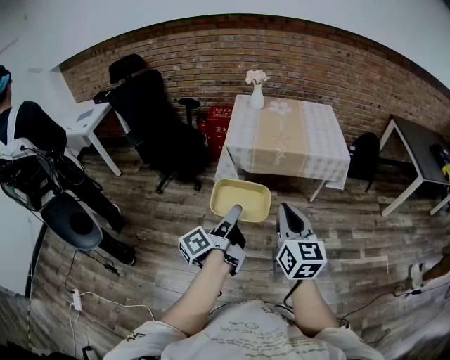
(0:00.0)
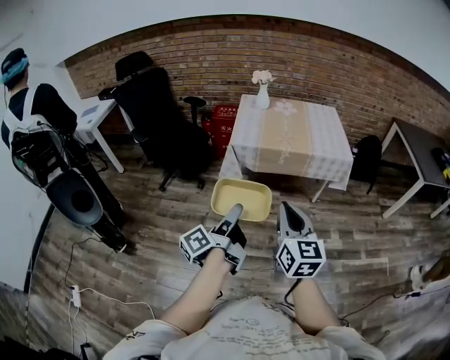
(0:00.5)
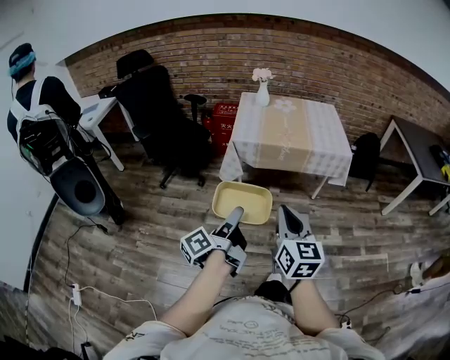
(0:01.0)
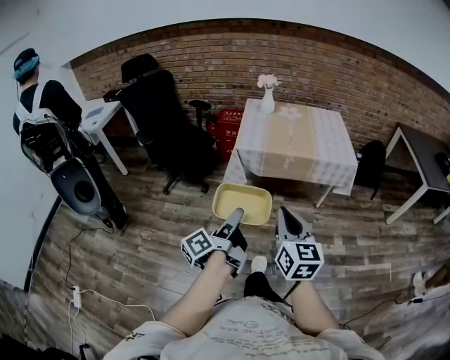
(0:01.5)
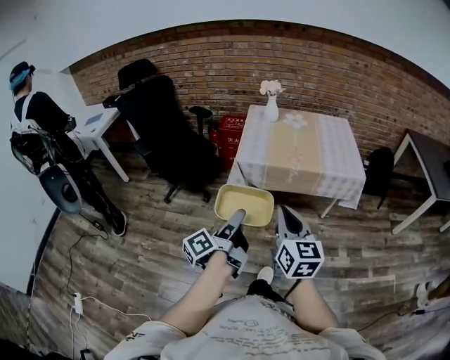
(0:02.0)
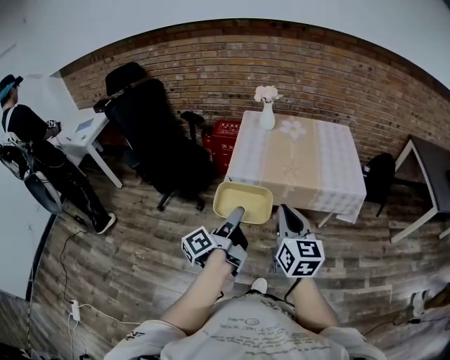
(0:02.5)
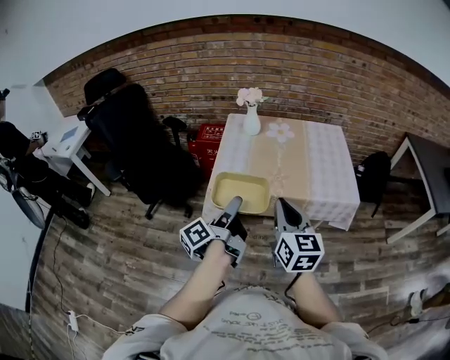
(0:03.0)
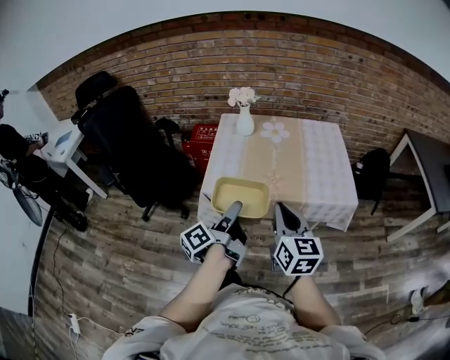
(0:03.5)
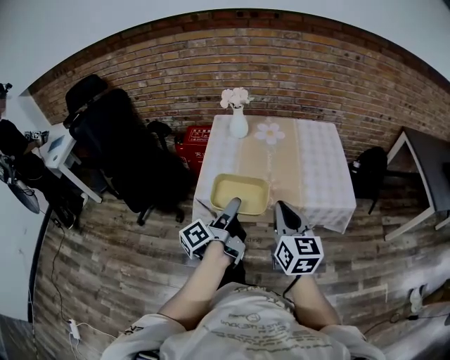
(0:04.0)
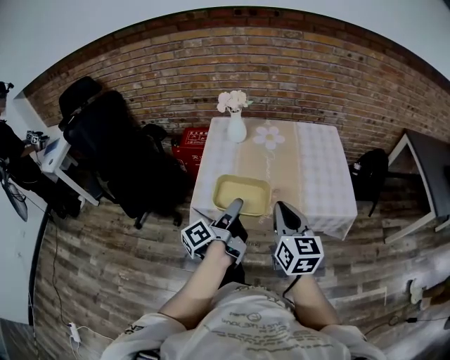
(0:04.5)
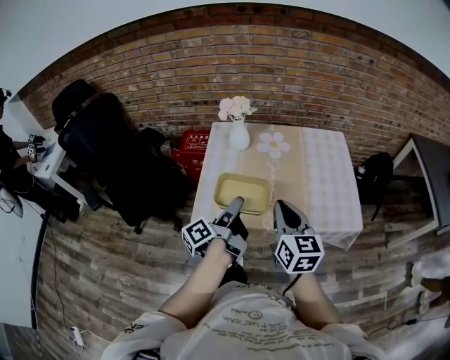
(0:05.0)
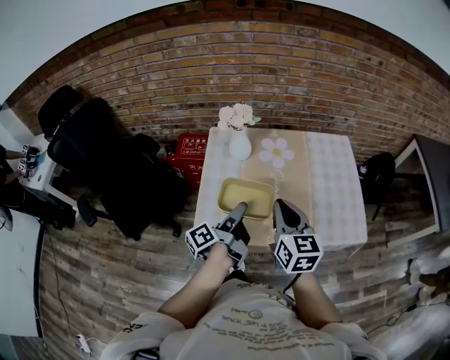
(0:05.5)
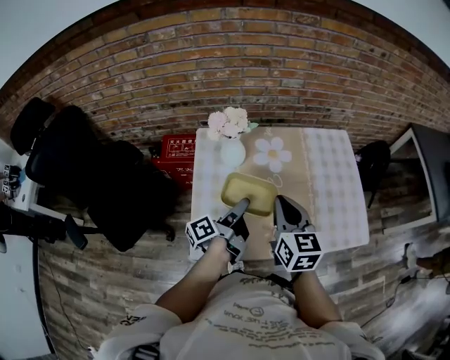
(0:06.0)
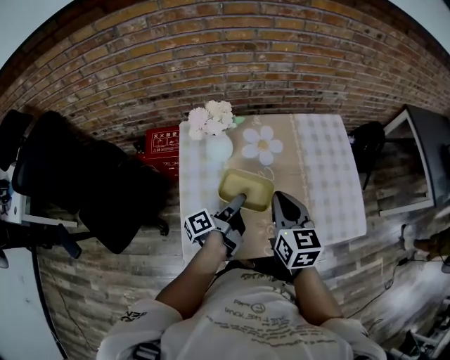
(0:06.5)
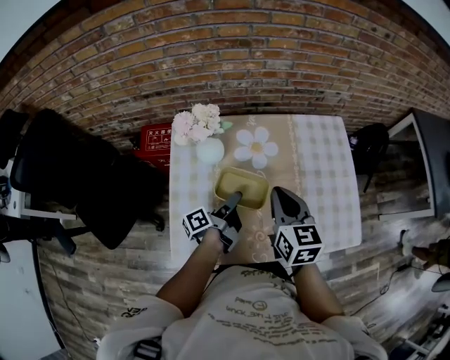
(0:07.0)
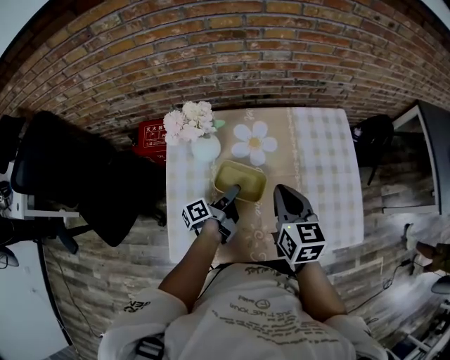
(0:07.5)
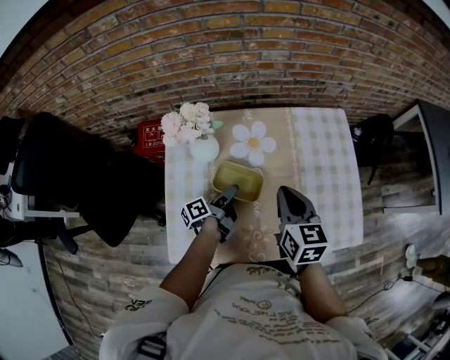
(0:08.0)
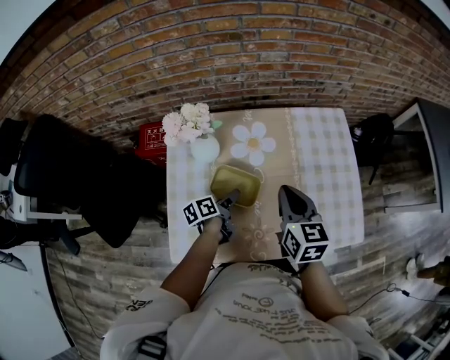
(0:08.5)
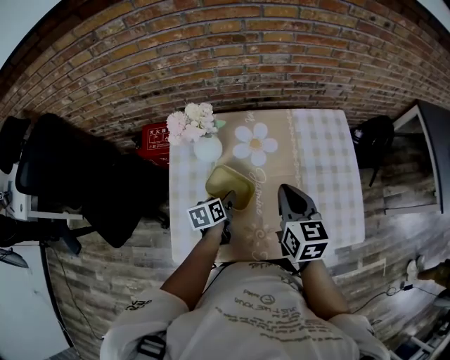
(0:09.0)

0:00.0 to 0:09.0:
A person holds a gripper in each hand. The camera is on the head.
0:00.0 to 0:02.0: The right gripper ends up about 10 cm from where it was.
0:02.0 to 0:04.5: The right gripper ends up approximately 40 cm from where it was.
0:04.5 to 0:07.0: The right gripper shifts by roughly 35 cm.

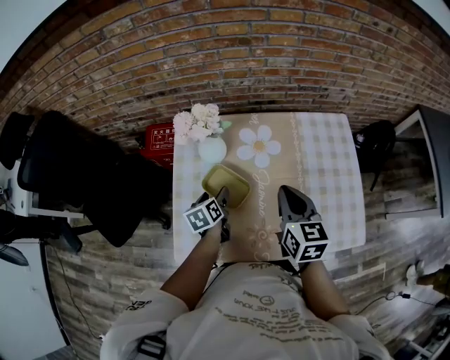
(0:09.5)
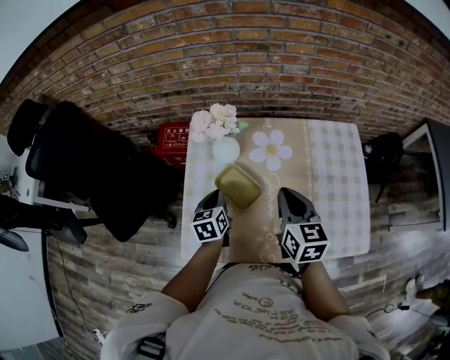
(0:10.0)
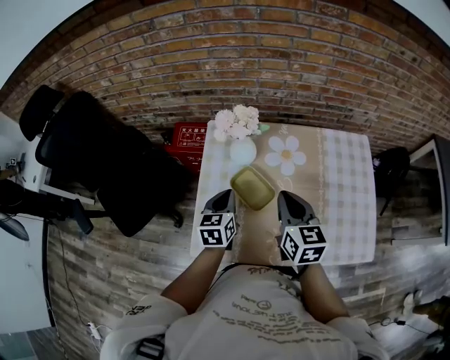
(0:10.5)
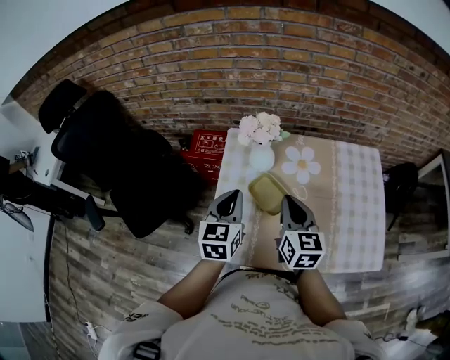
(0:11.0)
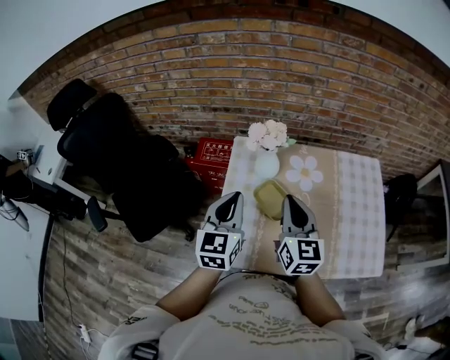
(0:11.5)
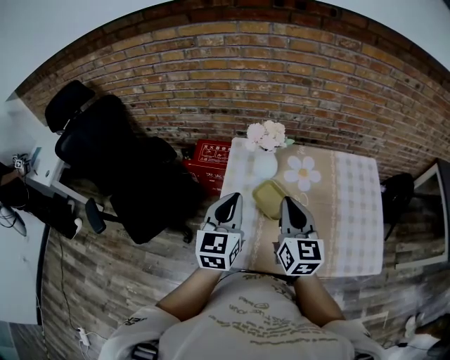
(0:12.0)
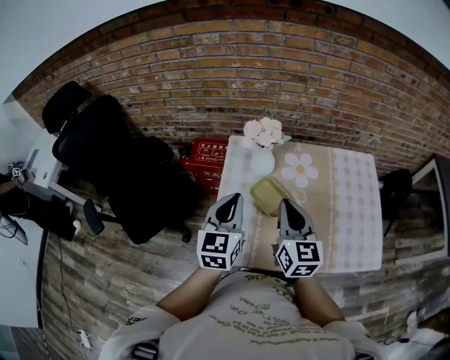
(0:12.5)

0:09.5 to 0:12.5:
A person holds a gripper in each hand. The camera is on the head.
0:09.5 to 0:11.0: The right gripper ends up roughly 15 cm from where it was.
0:11.0 to 0:12.5: The right gripper moves some 5 cm.

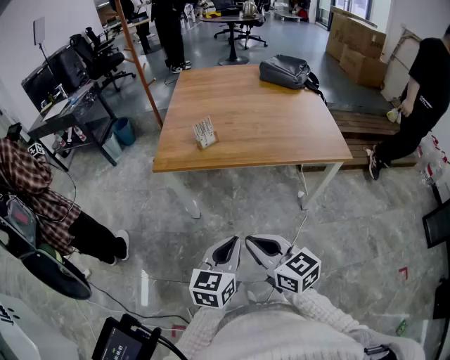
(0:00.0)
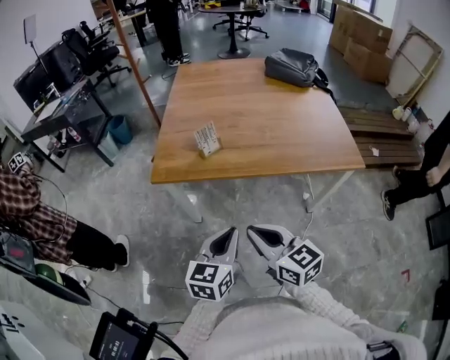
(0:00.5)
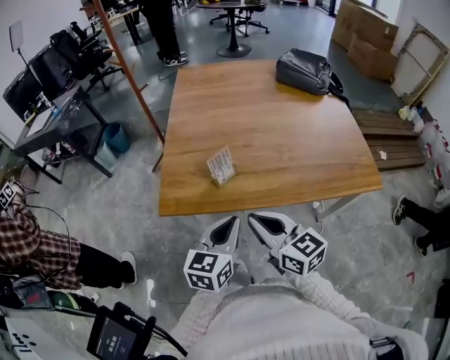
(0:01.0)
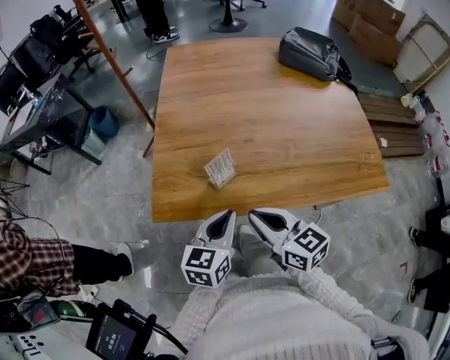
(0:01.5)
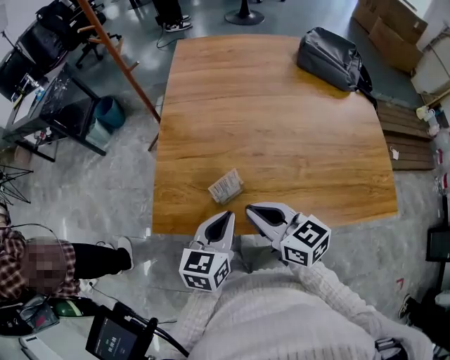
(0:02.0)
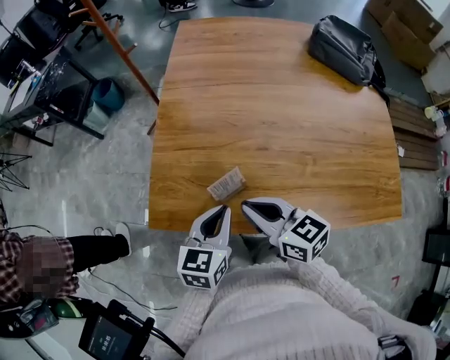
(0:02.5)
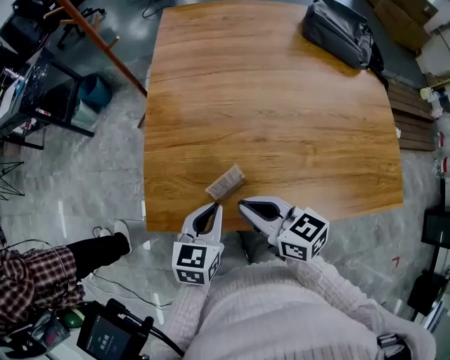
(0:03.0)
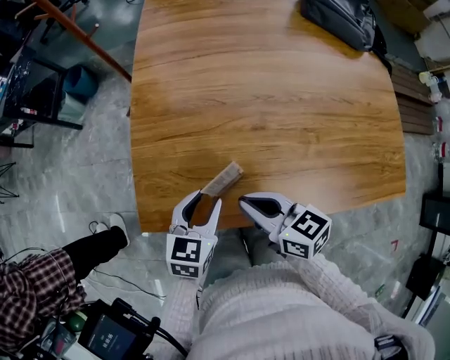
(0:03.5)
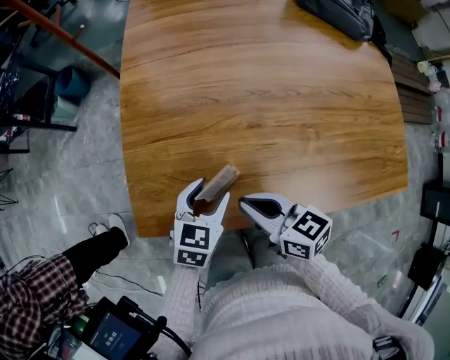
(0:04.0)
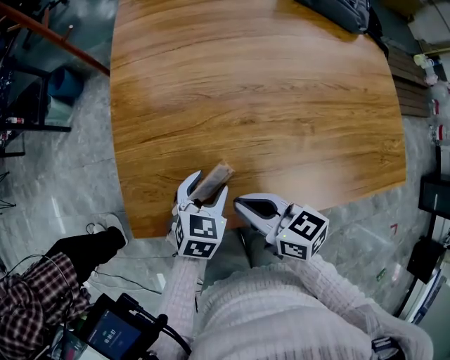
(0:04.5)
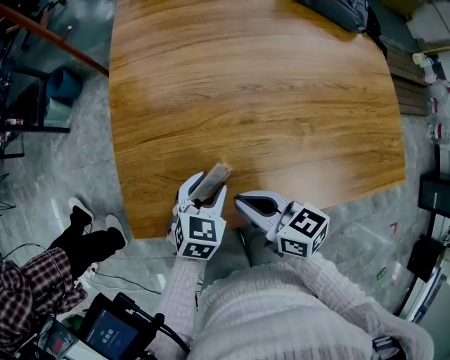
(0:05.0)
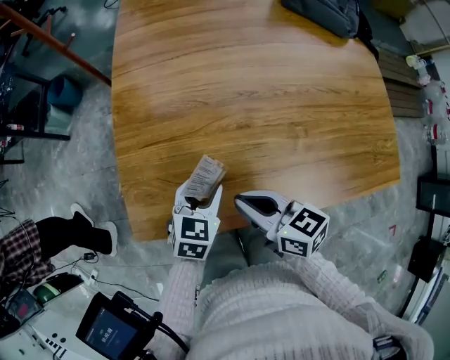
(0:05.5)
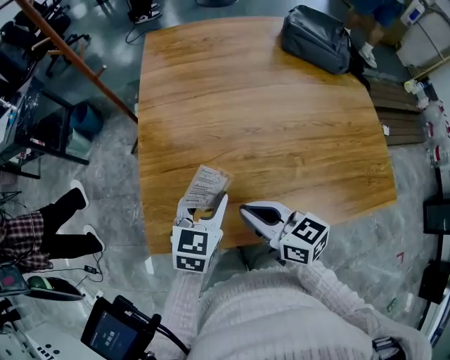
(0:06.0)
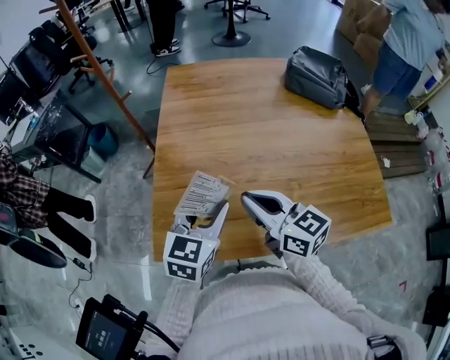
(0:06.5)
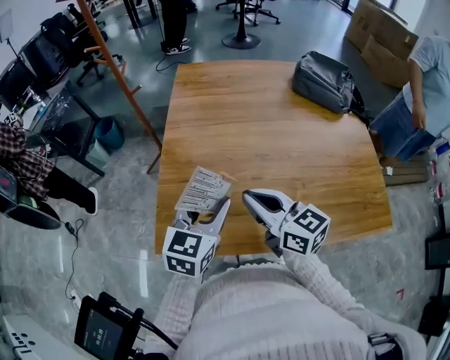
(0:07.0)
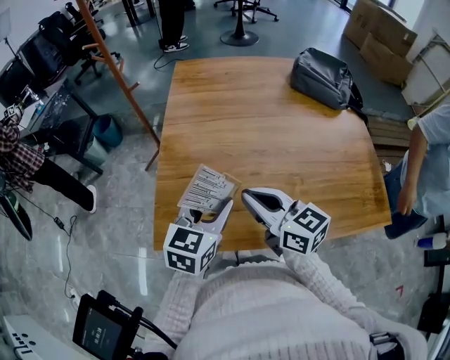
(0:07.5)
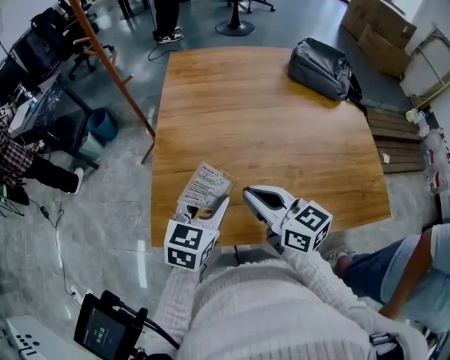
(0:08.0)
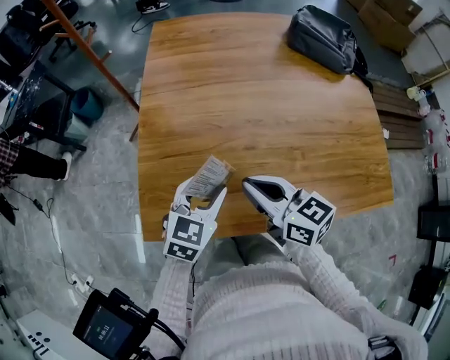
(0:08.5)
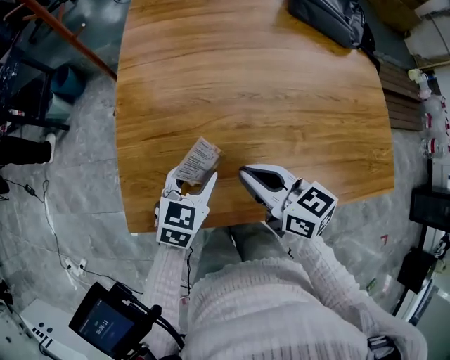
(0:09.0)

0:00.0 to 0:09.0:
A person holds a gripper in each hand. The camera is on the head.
0:00.0 to 0:02.0: Both grippers are carried forward, about 40 cm.
0:02.0 to 0:04.5: The left gripper is displaced downward and forward by roughly 15 cm, swivels about 30 degrees, and opens its fingers. The right gripper travels downward by some 10 cm.
0:04.5 to 0:07.0: The two grippers go roughly 15 cm upward. The left gripper changes its angle by some 30 degrees; the right gripper turns by approximately 30 degrees.
0:07.0 to 0:09.0: The right gripper shifts some 10 cm downward. The left gripper shifts approximately 15 cm downward.

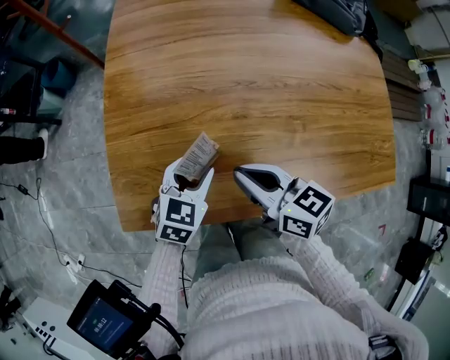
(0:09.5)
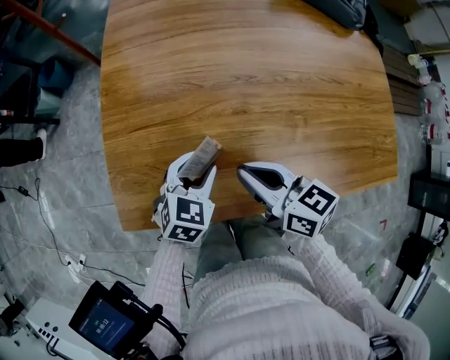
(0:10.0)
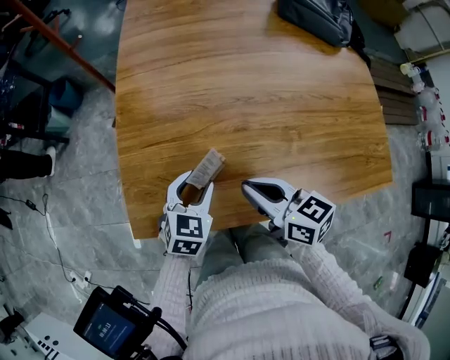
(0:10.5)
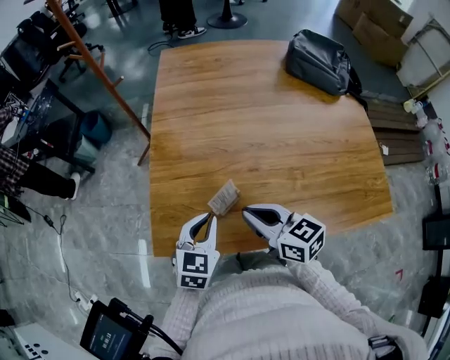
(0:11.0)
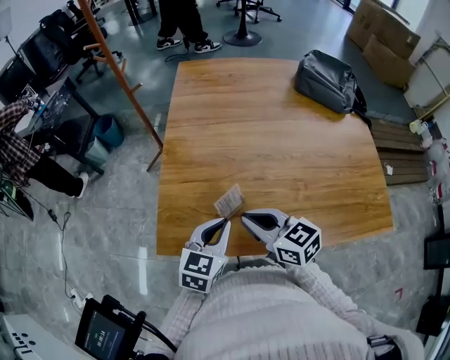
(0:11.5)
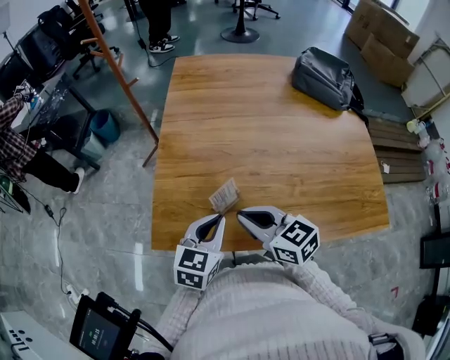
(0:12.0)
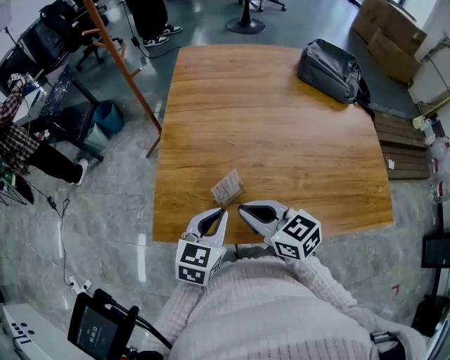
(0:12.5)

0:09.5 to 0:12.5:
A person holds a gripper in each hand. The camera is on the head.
0:09.5 to 0:11.0: The left gripper travels upward by some 10 cm, and closes its fingers. Meanwhile the right gripper is displaced upward by approximately 5 cm.
0:11.0 to 0:12.5: There are only small adjustments of the grippers.

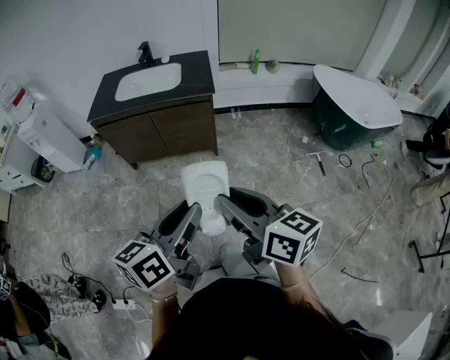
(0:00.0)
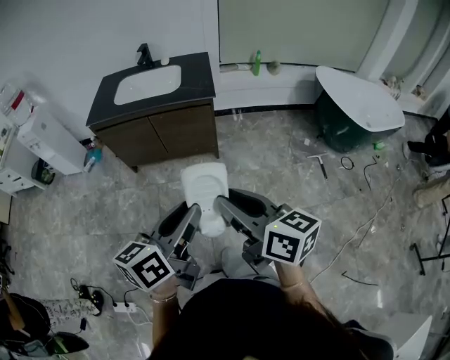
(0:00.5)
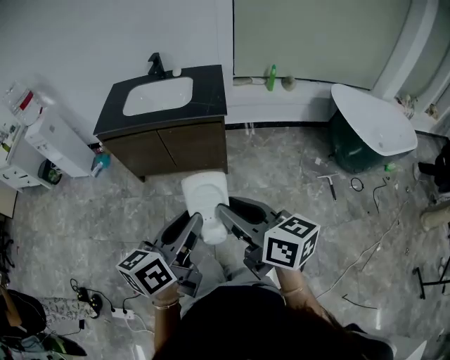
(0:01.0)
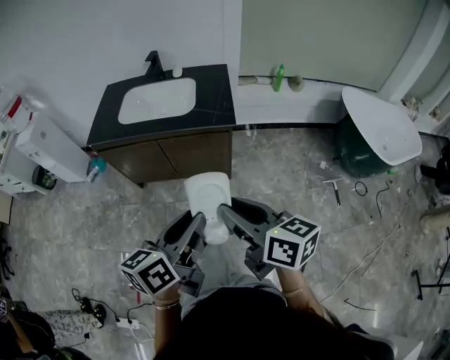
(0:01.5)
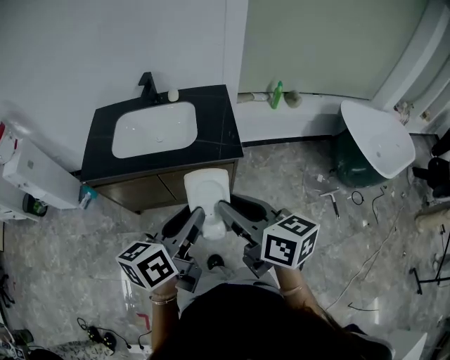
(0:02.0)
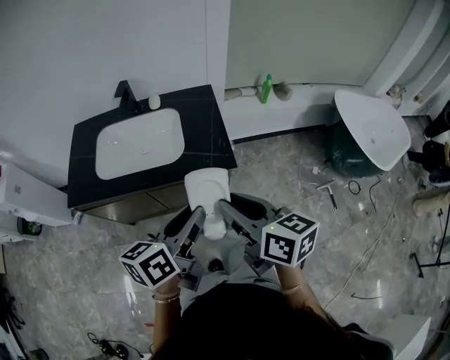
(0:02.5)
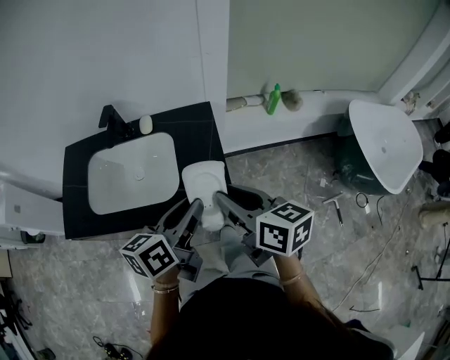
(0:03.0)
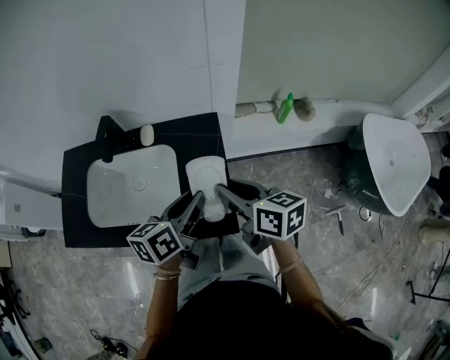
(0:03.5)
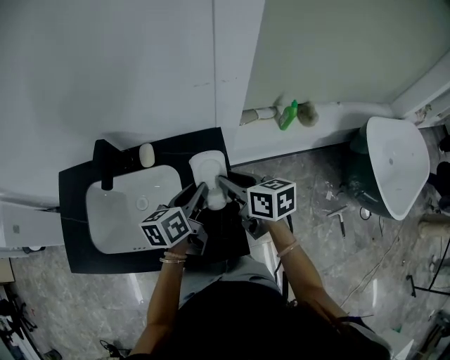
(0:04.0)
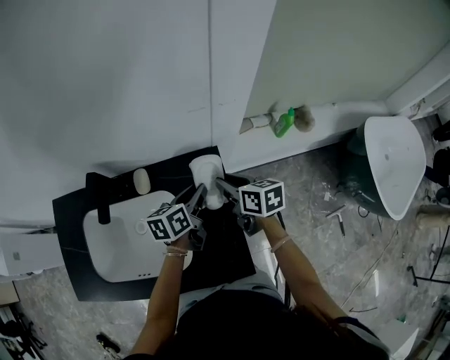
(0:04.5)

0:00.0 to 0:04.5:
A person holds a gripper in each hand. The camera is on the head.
0:00.0 to 0:02.0: Both grippers move forward, about 40 cm.
0:02.0 to 0:04.5: Both grippers are carried forward, about 60 cm. The right gripper turns by approximately 20 degrees.
